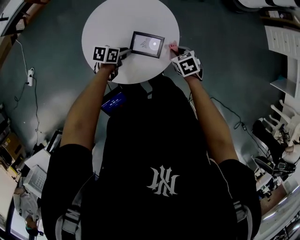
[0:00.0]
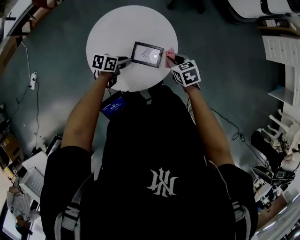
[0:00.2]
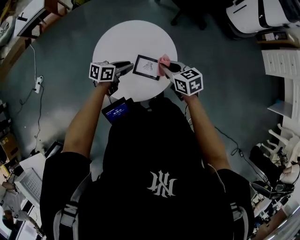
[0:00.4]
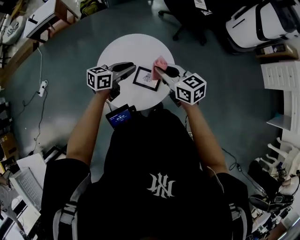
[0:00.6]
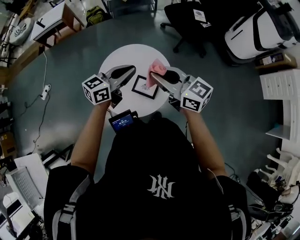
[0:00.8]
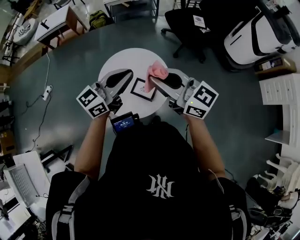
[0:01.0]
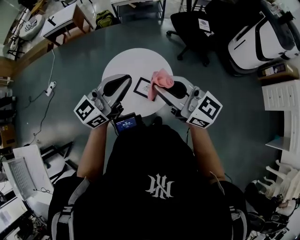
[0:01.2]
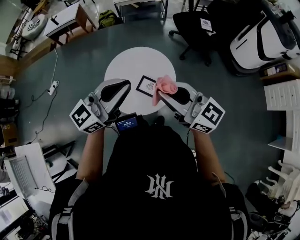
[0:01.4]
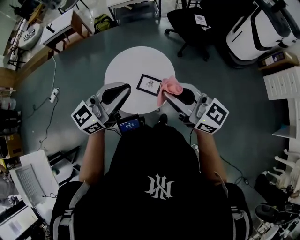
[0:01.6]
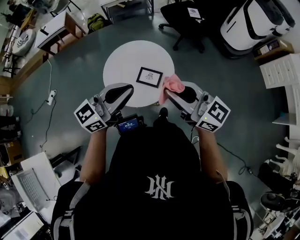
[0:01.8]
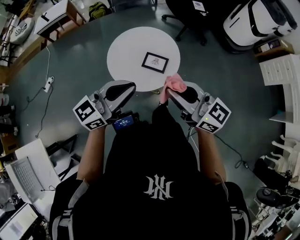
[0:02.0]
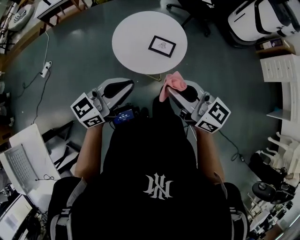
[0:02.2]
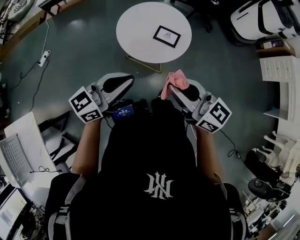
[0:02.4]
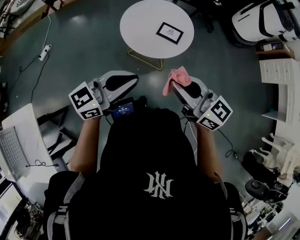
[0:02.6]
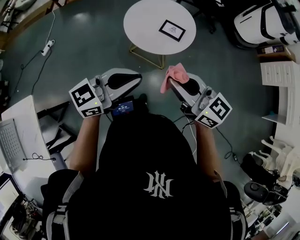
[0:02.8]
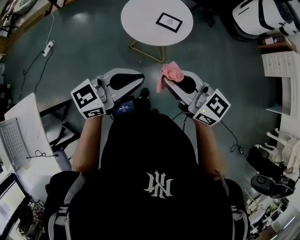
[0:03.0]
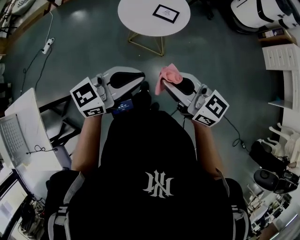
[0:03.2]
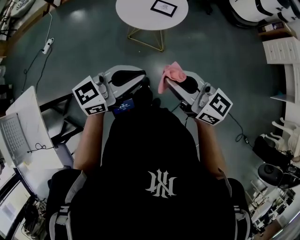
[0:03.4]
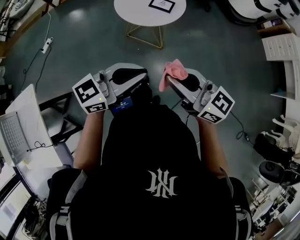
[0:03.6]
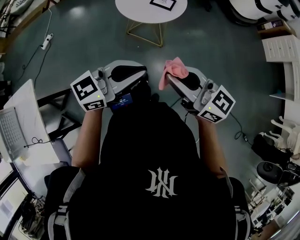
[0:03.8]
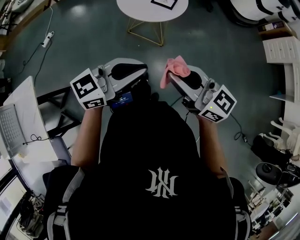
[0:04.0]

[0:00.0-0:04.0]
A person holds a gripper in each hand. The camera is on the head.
0.0 to 1.4 s: Both grippers move upward, about 50 cm. The left gripper tips its fingers upward by some 60 degrees. The right gripper points its fingers approximately 70 degrees further upward.
1.4 to 2.6 s: The grippers both shift backward and to the left by about 30 cm.
2.6 to 4.0 s: Both grippers move backward, some 20 cm.

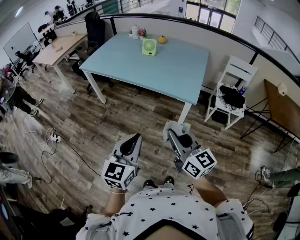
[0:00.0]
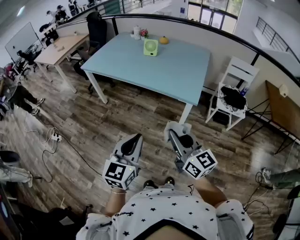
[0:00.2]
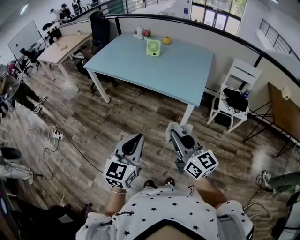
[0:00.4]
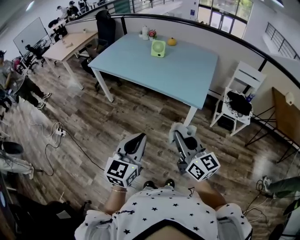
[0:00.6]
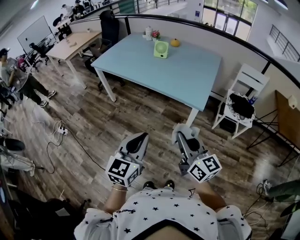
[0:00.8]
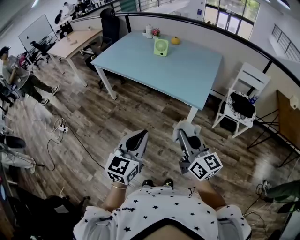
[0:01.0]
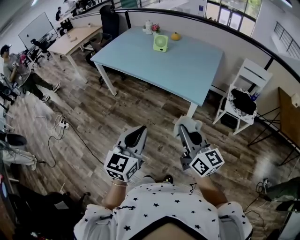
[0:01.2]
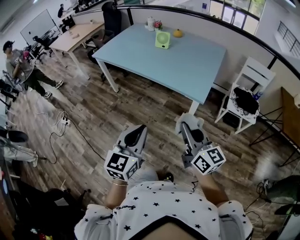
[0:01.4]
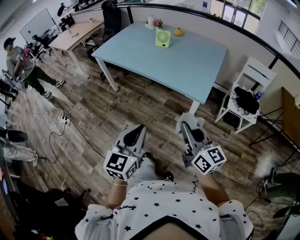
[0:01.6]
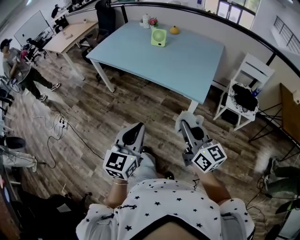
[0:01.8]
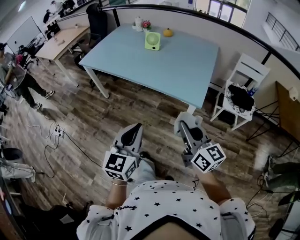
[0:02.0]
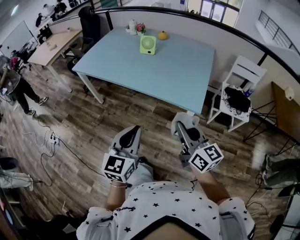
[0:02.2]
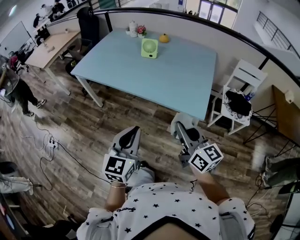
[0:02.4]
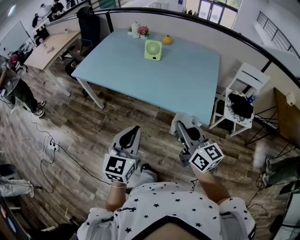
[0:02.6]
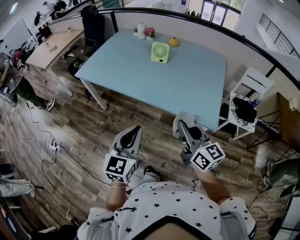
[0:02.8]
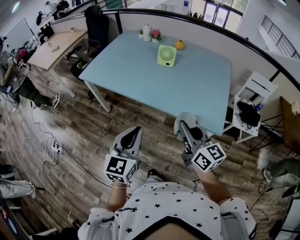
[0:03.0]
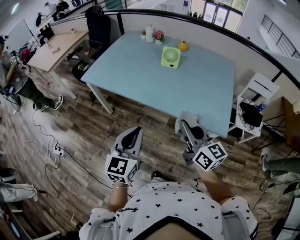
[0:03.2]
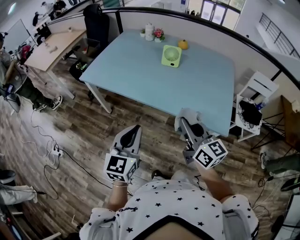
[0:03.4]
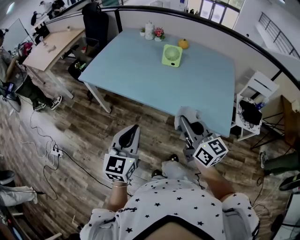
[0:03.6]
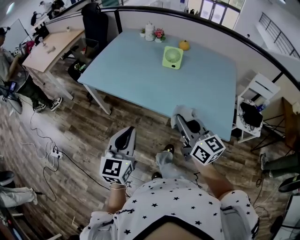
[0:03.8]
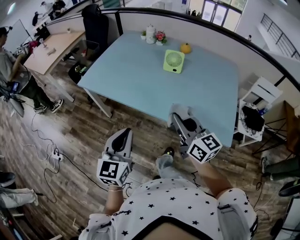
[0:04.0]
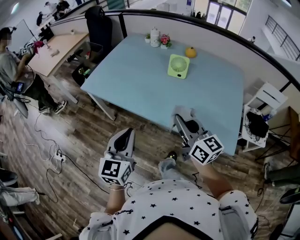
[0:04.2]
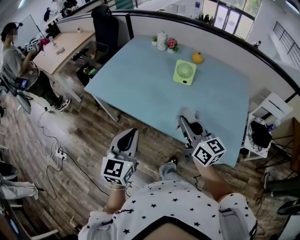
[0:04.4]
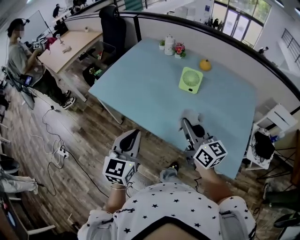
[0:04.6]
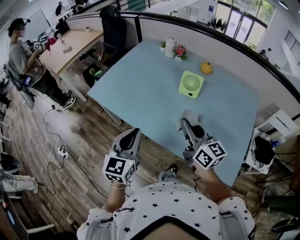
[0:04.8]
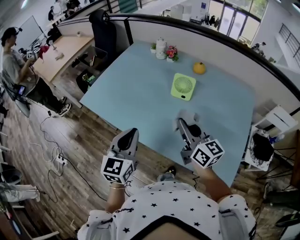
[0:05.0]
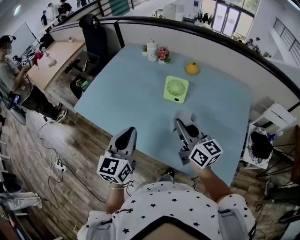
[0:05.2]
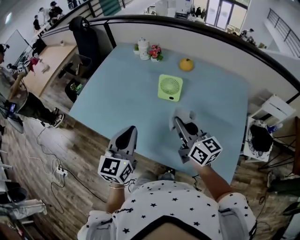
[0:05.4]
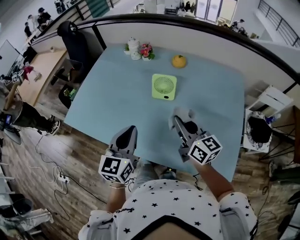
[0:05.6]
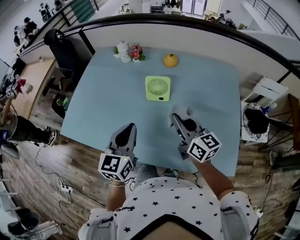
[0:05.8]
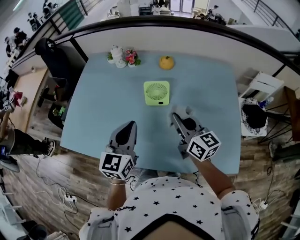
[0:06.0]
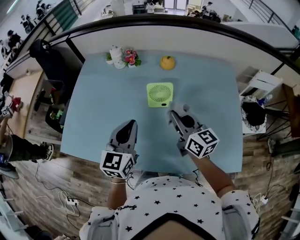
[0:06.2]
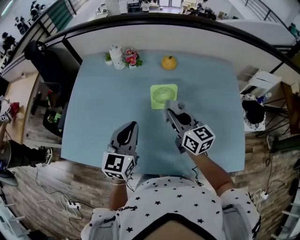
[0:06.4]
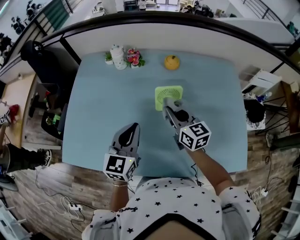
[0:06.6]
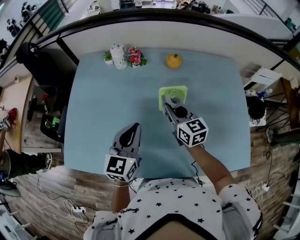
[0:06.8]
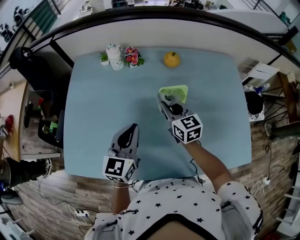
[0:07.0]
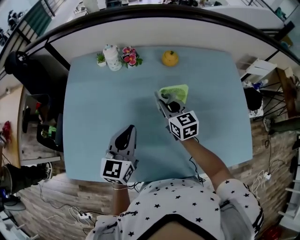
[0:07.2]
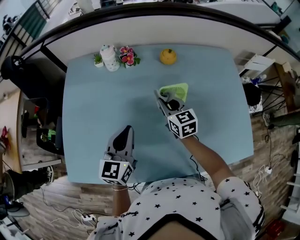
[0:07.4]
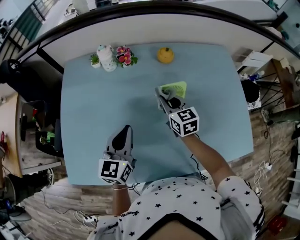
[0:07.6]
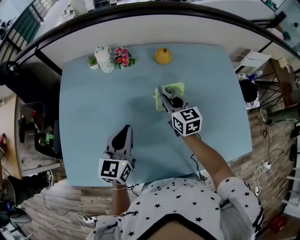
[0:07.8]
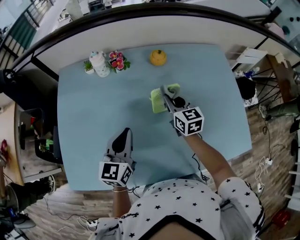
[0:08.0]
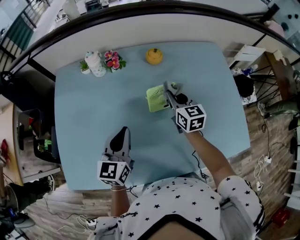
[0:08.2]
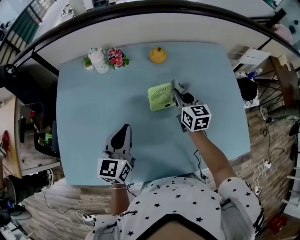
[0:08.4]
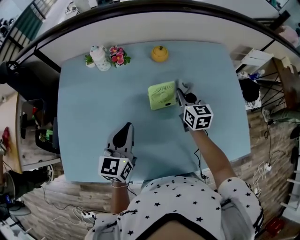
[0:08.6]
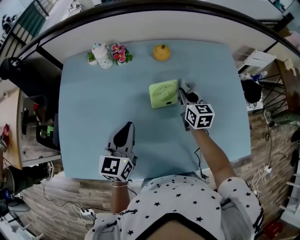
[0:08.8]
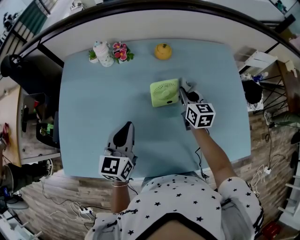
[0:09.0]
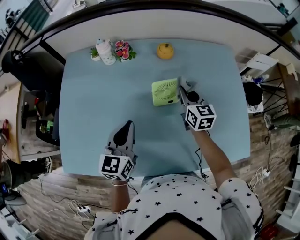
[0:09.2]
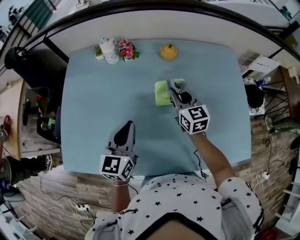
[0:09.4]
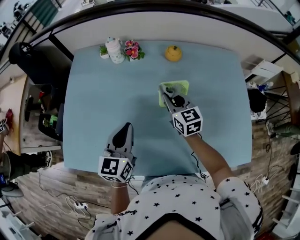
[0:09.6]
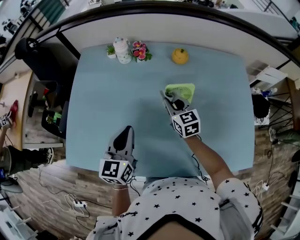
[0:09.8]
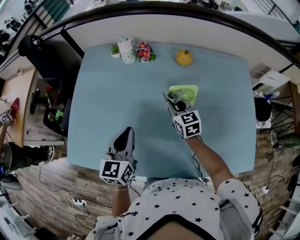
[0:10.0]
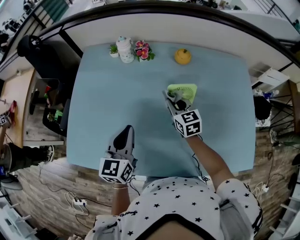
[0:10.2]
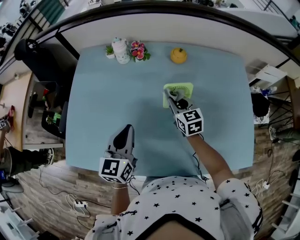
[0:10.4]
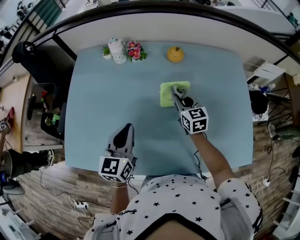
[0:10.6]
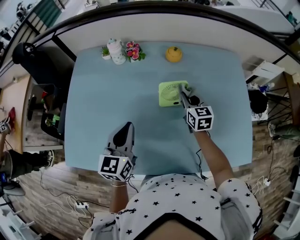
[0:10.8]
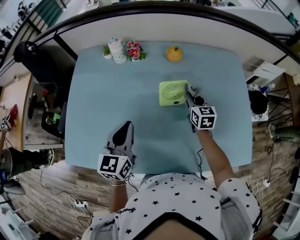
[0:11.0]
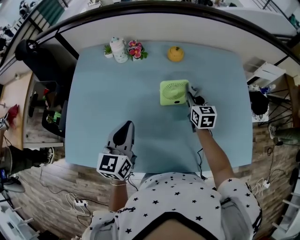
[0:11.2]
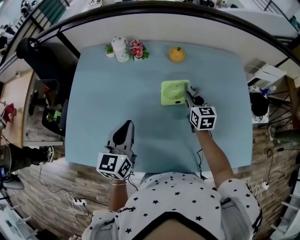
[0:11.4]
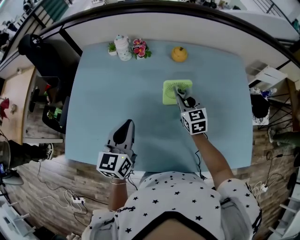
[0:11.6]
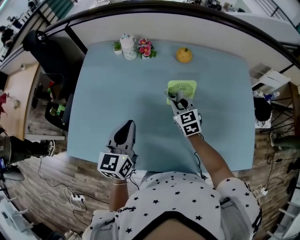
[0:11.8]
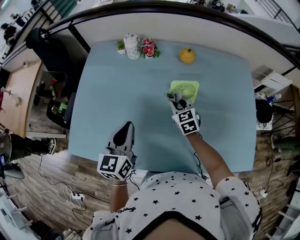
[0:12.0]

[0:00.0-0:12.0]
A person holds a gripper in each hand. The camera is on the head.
0.0 to 1.6 s: The right gripper moves to the right, approximately 10 cm. Meanwhile the left gripper shifts by about 5 cm.
1.6 to 3.0 s: Both grippers move forward and to the left, approximately 30 cm.
3.0 to 4.4 s: The two grippers go about 20 cm forward.
4.4 to 6.0 s: The two grippers go about 25 cm forward and to the right.
6.0 to 7.6 s: The left gripper moves to the left, forward and downward, approximately 20 cm. The right gripper travels forward, to the left and downward by approximately 25 cm, and swivels approximately 30 degrees.
7.6 to 9.0 s: The right gripper is displaced to the right by approximately 15 cm.
9.0 to 10.4 s: The right gripper goes about 10 cm to the left.
10.4 to 12.0 s: The right gripper travels to the right and back again, about 10 cm each way.

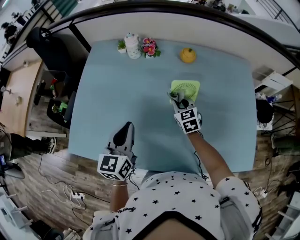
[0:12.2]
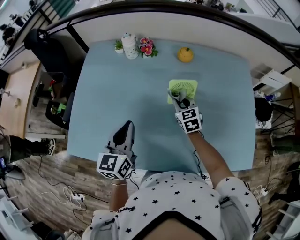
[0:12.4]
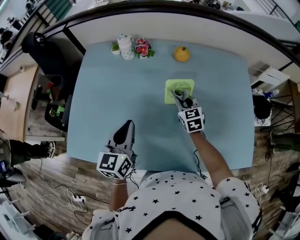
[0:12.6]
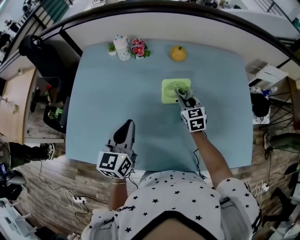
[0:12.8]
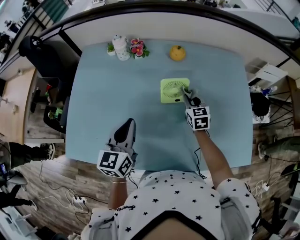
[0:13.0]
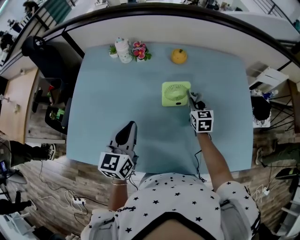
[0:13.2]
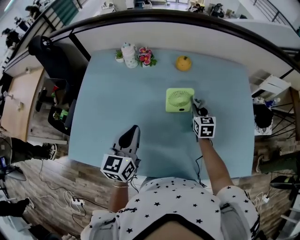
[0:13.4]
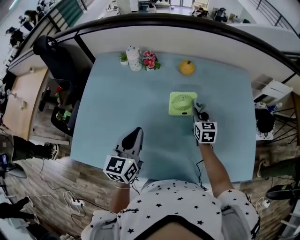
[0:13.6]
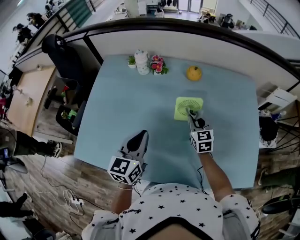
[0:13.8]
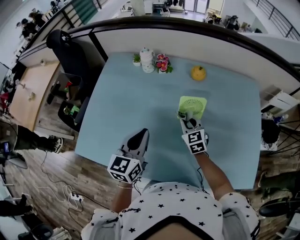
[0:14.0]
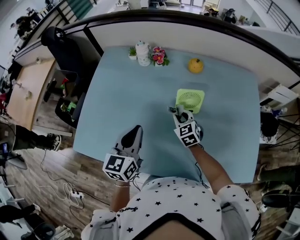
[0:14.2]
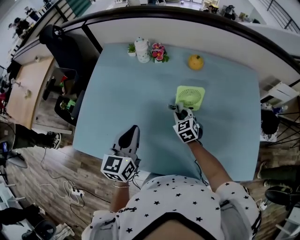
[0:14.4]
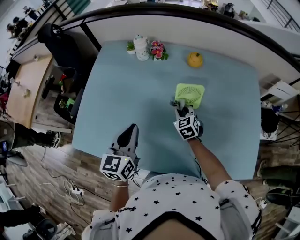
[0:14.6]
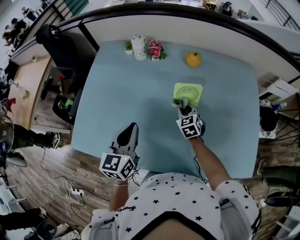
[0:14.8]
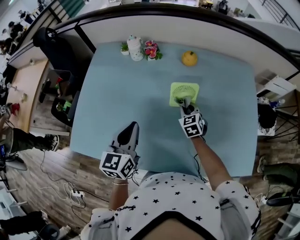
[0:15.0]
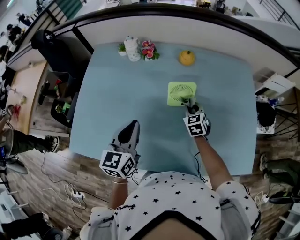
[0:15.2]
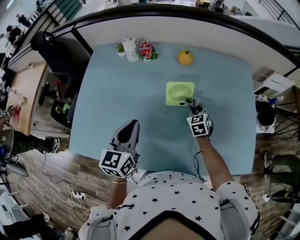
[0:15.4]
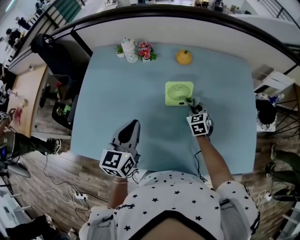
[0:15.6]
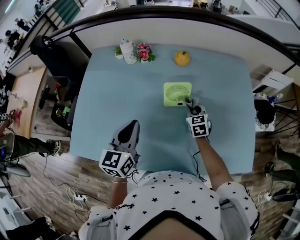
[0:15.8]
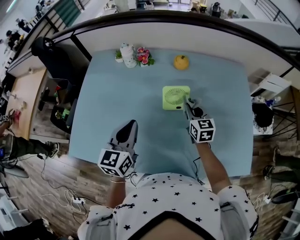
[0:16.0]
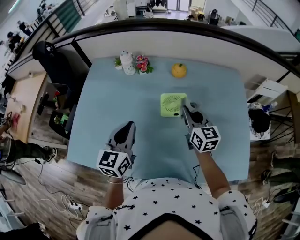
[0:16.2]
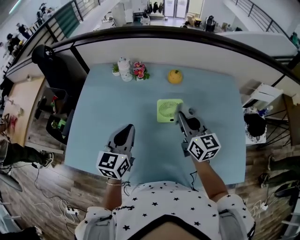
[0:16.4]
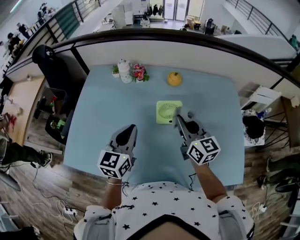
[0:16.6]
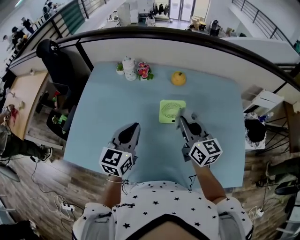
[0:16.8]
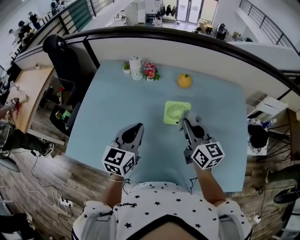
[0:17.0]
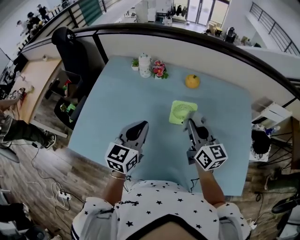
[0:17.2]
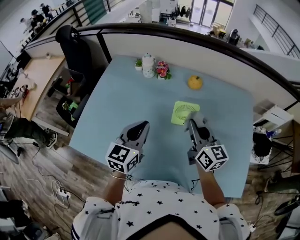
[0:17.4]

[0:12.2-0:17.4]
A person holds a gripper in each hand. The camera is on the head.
12.2 to 14.0 s: The right gripper goes to the right and returns, about 15 cm each way.
14.0 to 15.6 s: The right gripper is displaced to the right and downward by roughly 10 cm.
15.6 to 17.4 s: The right gripper travels upward by roughly 20 cm, and tips its fingers upward by approximately 40 degrees.

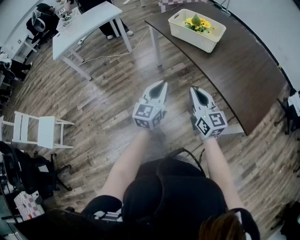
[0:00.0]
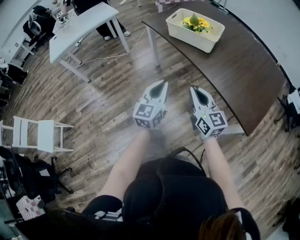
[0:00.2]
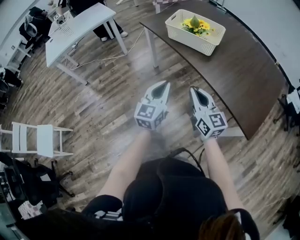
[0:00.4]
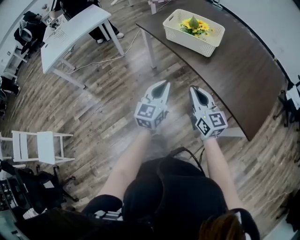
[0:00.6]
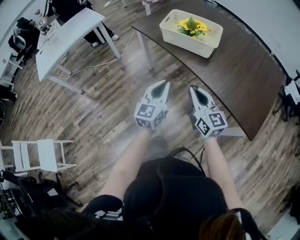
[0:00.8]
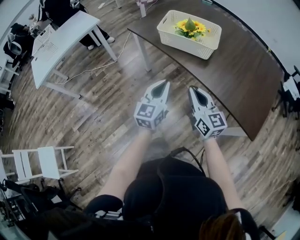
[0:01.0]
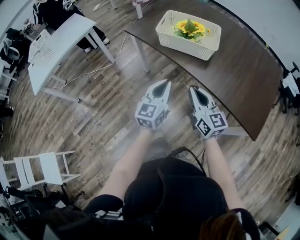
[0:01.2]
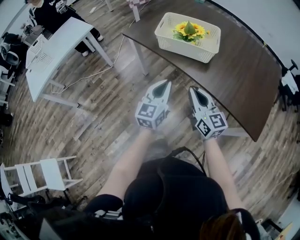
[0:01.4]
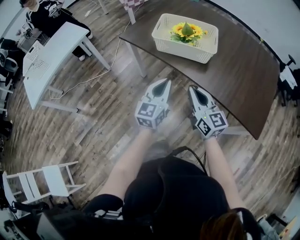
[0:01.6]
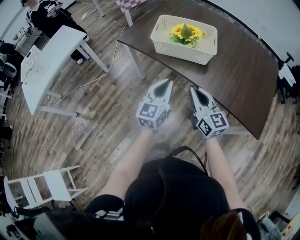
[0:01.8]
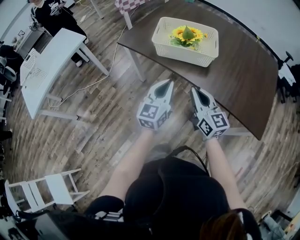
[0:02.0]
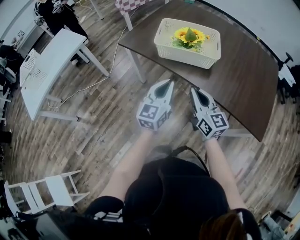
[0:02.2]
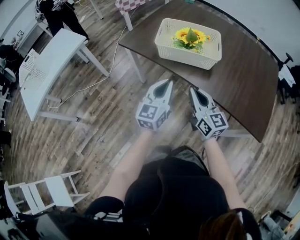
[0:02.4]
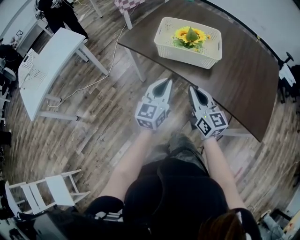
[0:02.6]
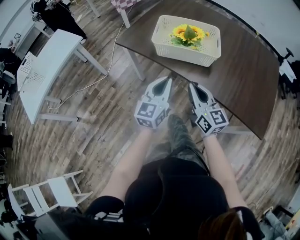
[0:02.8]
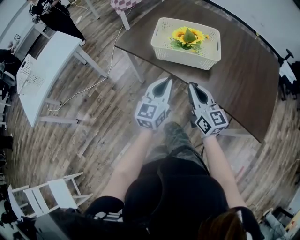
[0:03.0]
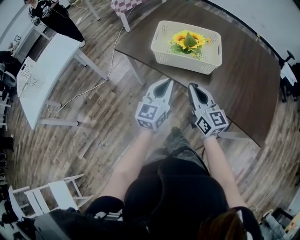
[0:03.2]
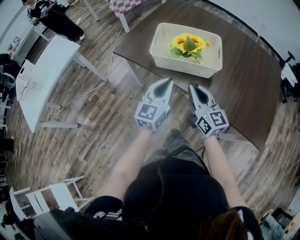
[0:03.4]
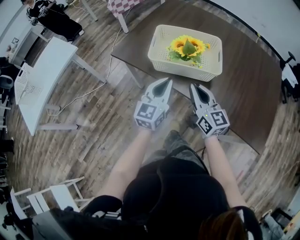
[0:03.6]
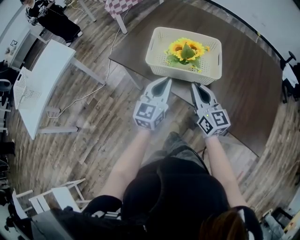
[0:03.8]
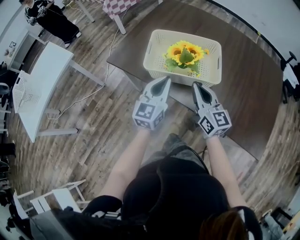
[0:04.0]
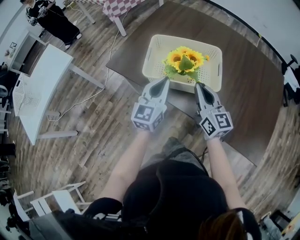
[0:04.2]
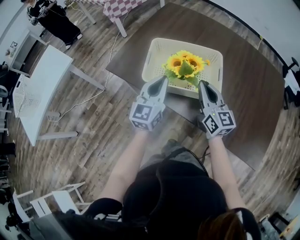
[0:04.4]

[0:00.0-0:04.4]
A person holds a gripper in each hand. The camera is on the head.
0.0 to 1.4 s: Both grippers travel together forward, roughly 20 cm.
1.4 to 3.0 s: Both grippers travel together forward, approximately 10 cm.
3.0 to 4.4 s: The grippers both shift forward by roughly 20 cm.
